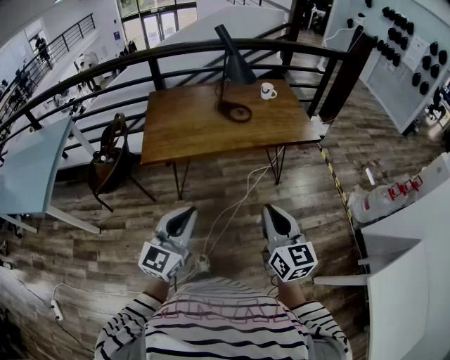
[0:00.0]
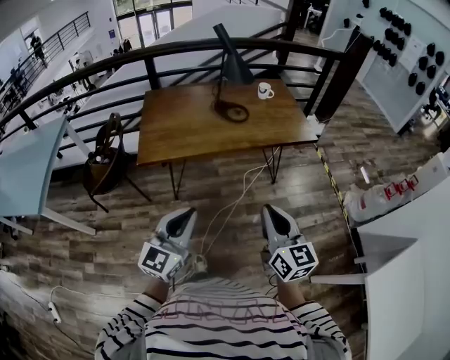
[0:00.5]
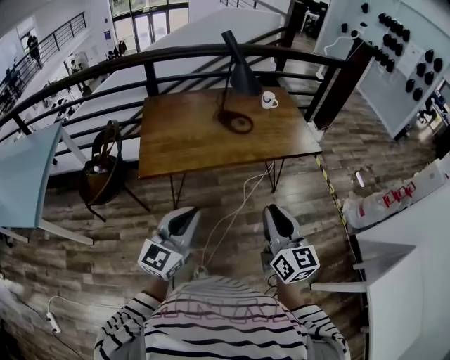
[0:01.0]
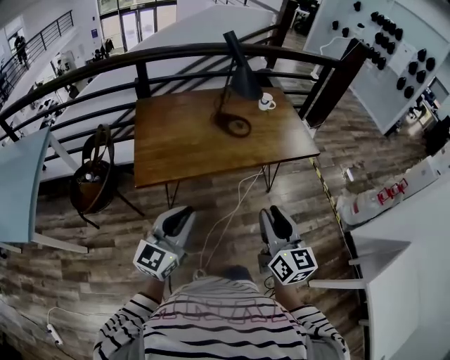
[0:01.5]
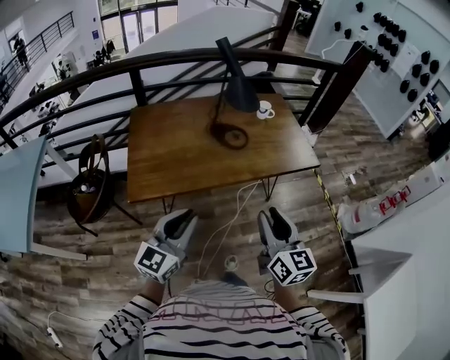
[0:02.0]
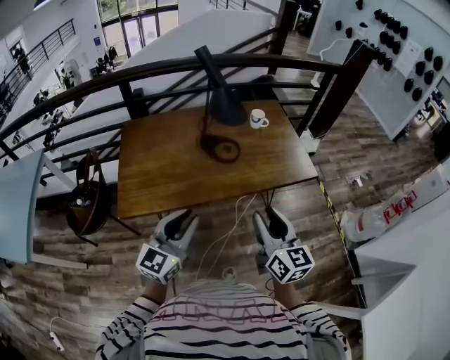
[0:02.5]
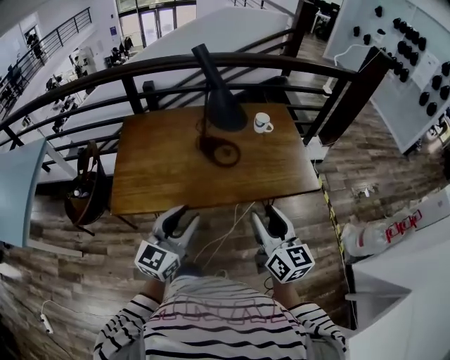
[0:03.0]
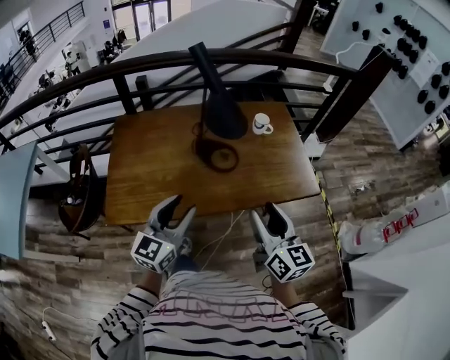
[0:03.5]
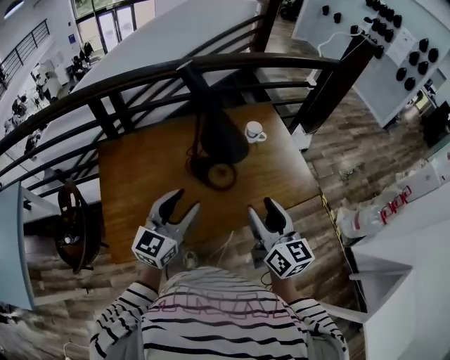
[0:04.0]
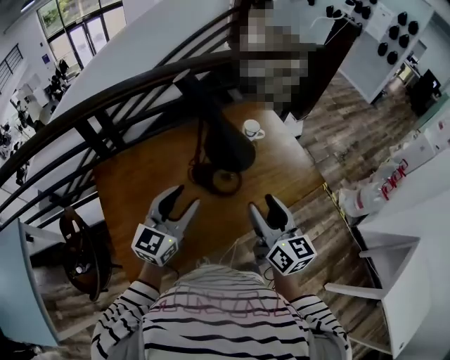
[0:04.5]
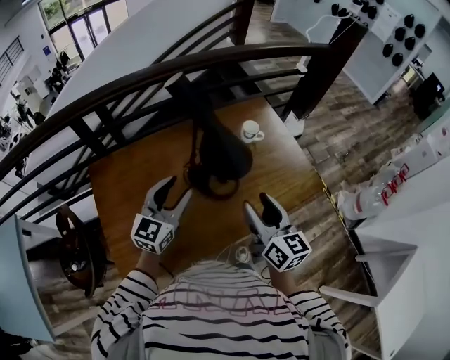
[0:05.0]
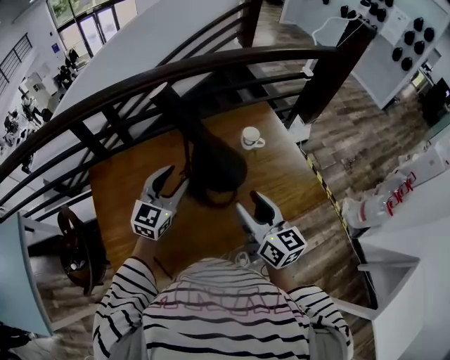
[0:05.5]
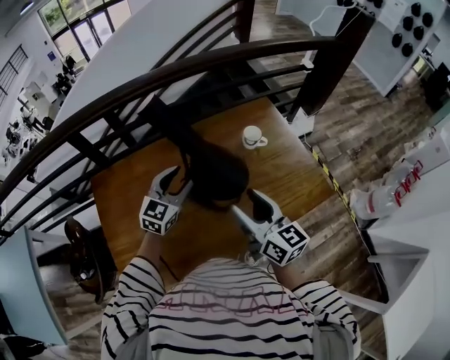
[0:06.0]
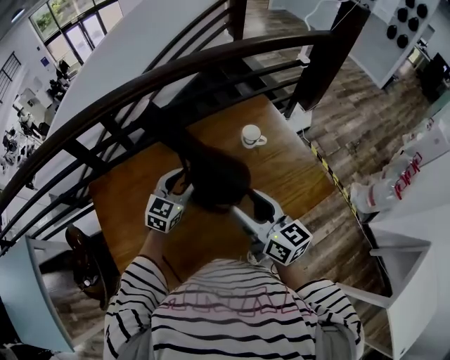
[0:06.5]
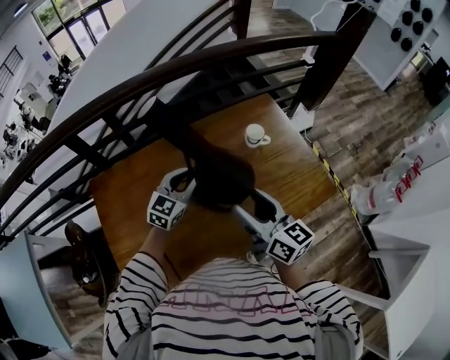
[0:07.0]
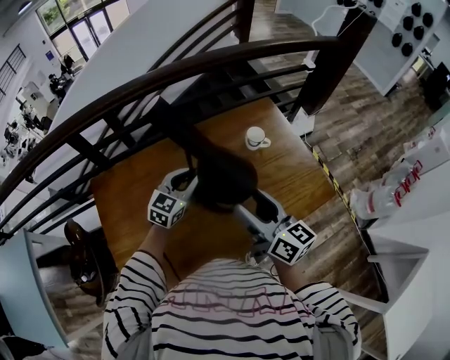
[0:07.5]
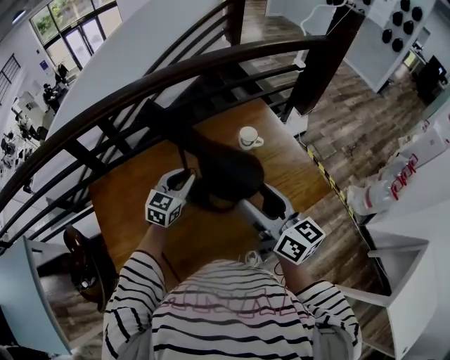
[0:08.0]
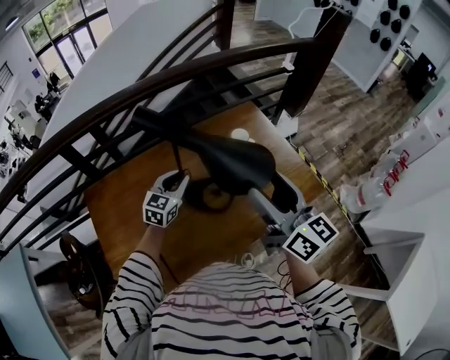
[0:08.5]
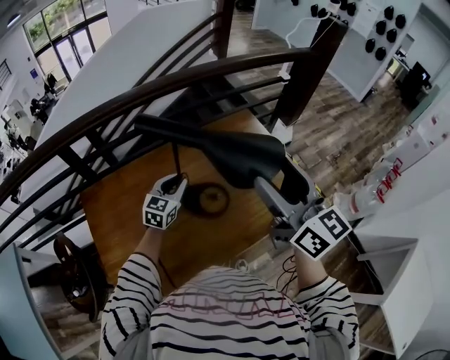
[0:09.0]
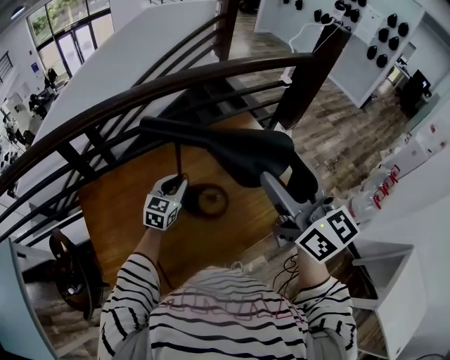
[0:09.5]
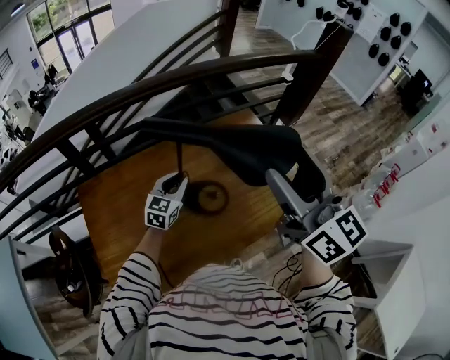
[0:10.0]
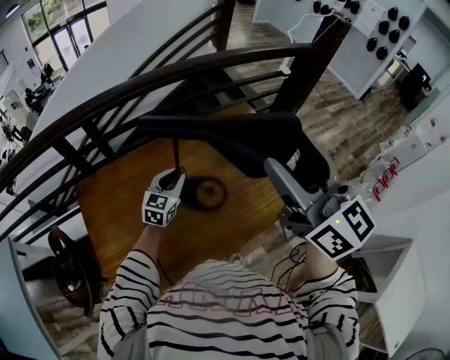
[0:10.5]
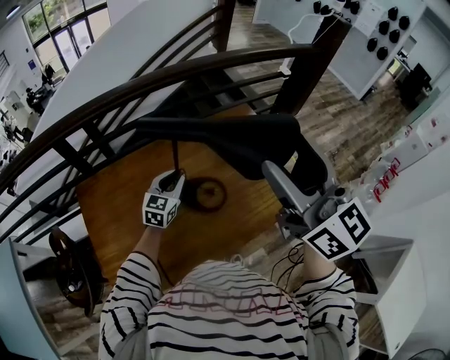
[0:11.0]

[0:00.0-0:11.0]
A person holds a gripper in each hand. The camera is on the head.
0.0 to 2.0 s: The two grippers go approximately 20 cm forward and to the left. The right gripper opens its fingers.
2.0 to 3.5 s: The grippers both shift forward by approximately 25 cm. The left gripper opens its fingers.
3.5 to 5.5 s: The right gripper moves forward and to the left, about 25 cm. Meanwhile the left gripper goes approximately 30 cm forward.
5.5 to 7.5 s: The left gripper goes about 10 cm downward and forward, and closes up.
7.5 to 9.0 s: The right gripper moves upward, roughly 15 cm, and rotates approximately 20 degrees.
9.0 to 11.0 s: The right gripper shifts roughly 5 cm upward.

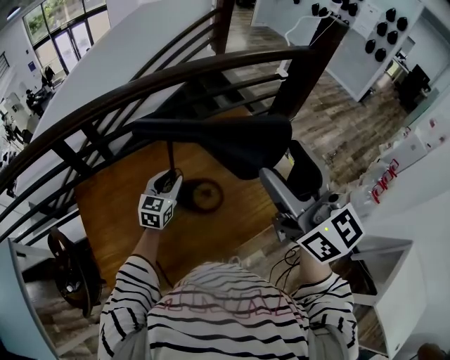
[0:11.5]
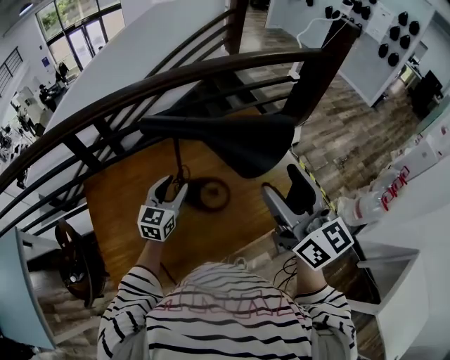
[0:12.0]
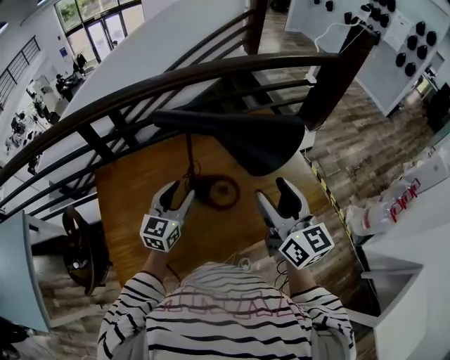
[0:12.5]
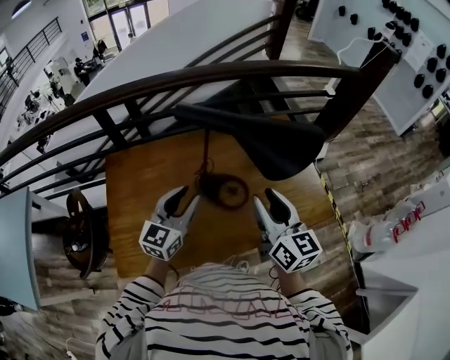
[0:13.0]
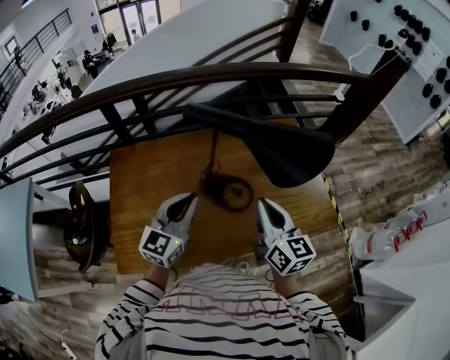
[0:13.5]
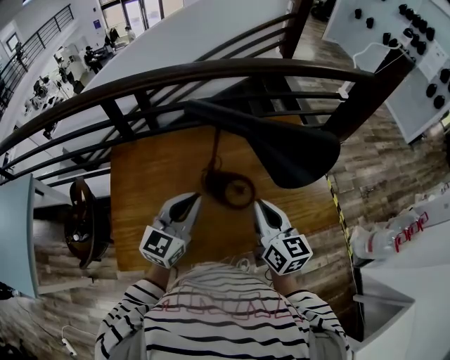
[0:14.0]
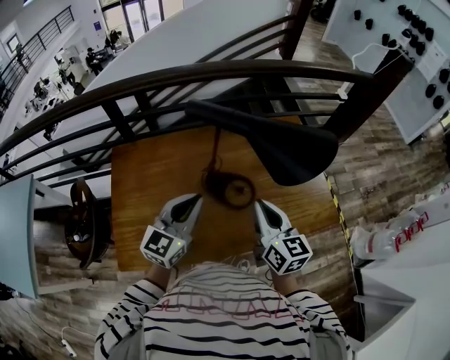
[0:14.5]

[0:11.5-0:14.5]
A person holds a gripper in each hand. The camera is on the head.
11.5 to 13.0 s: The left gripper moves backward and upward, approximately 15 cm; the right gripper is displaced downward by roughly 20 cm, and closes.
13.0 to 14.5 s: The right gripper heads downward, covering some 5 cm, and closes its fingers; the left gripper closes its fingers.

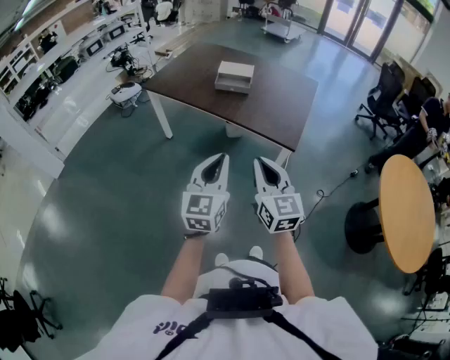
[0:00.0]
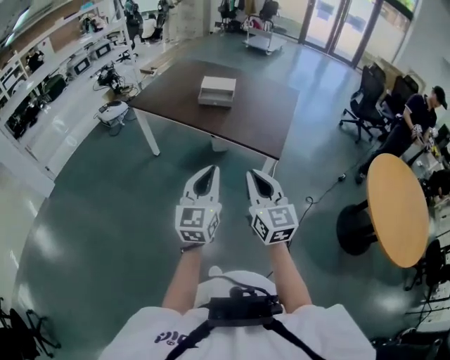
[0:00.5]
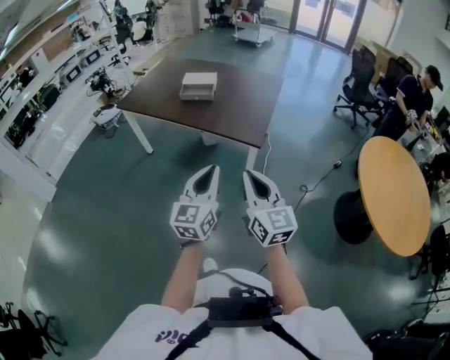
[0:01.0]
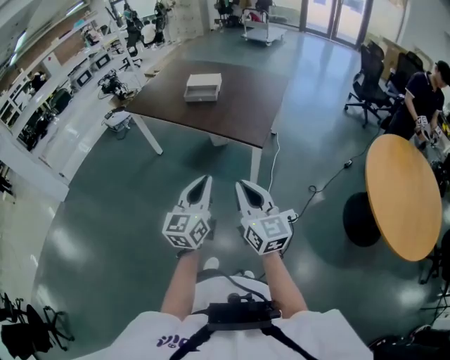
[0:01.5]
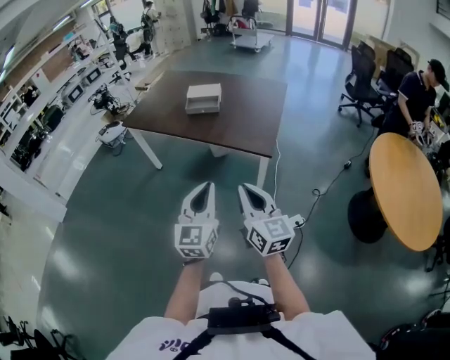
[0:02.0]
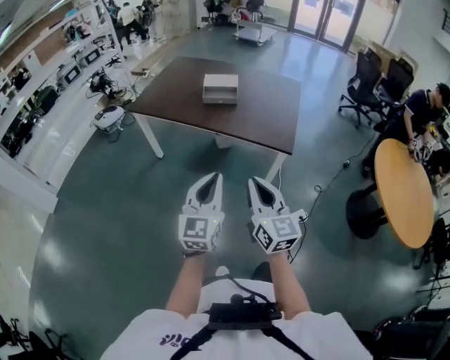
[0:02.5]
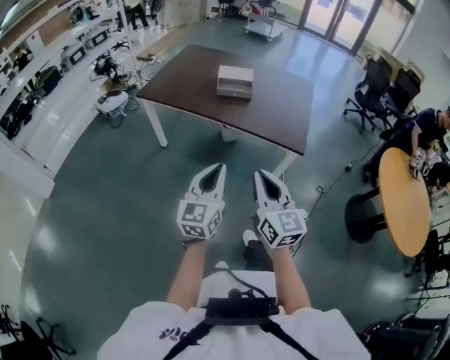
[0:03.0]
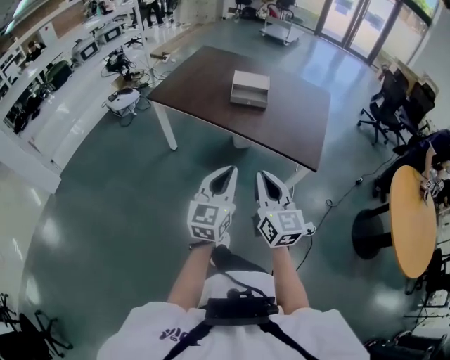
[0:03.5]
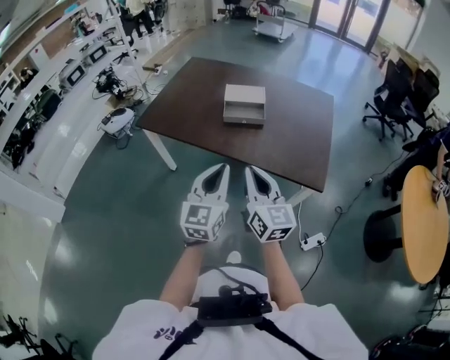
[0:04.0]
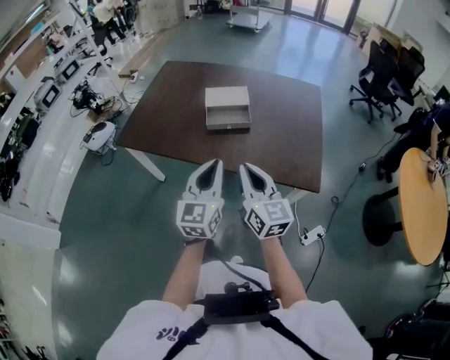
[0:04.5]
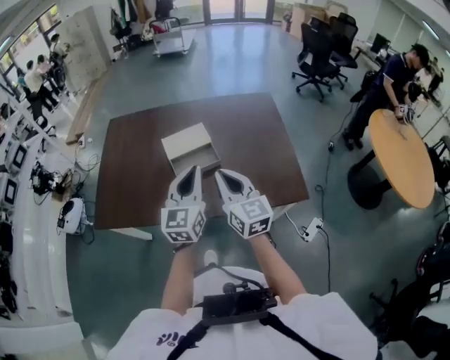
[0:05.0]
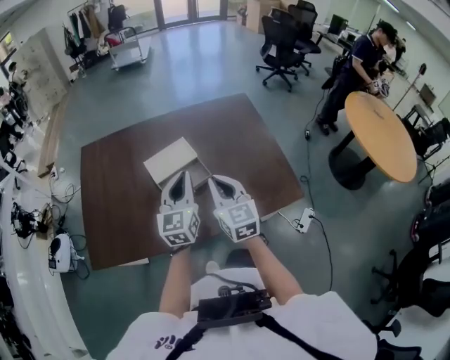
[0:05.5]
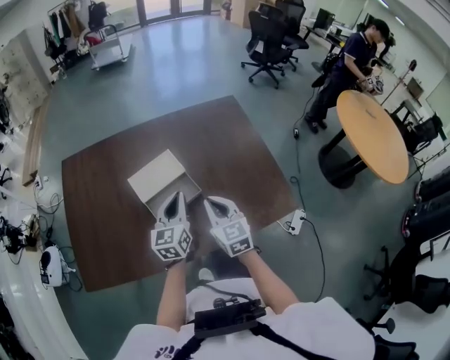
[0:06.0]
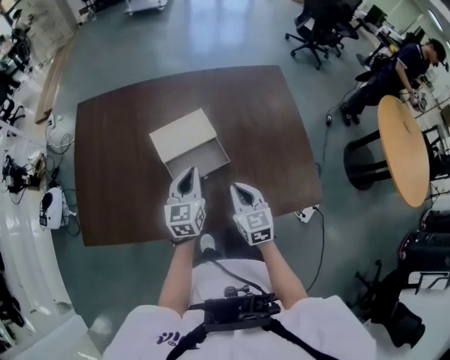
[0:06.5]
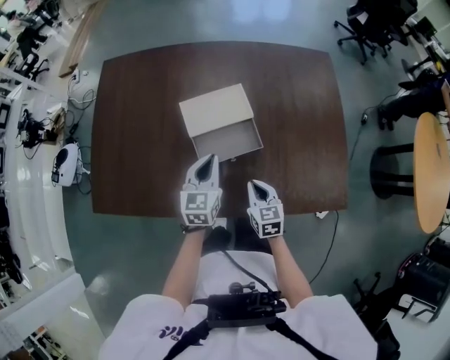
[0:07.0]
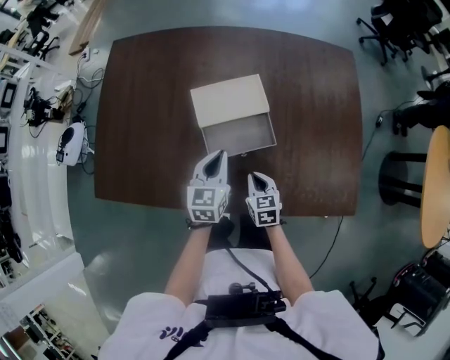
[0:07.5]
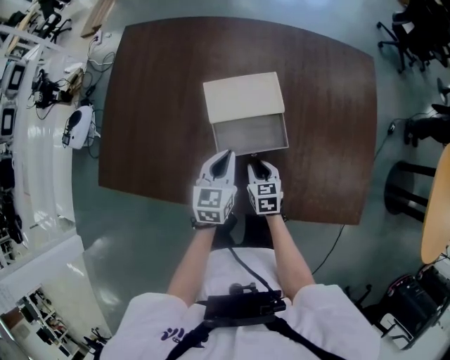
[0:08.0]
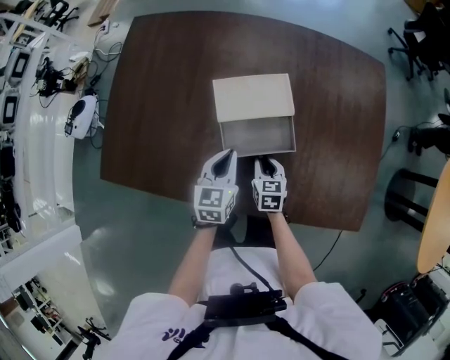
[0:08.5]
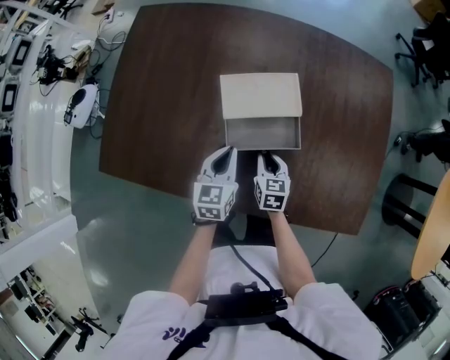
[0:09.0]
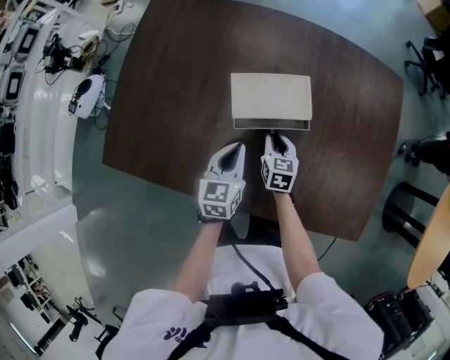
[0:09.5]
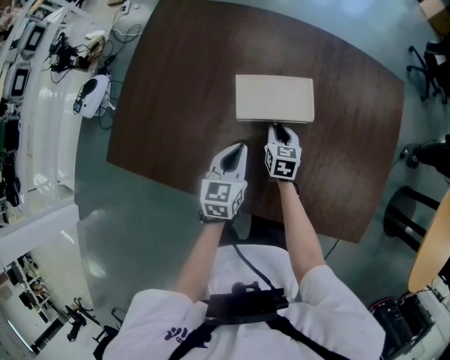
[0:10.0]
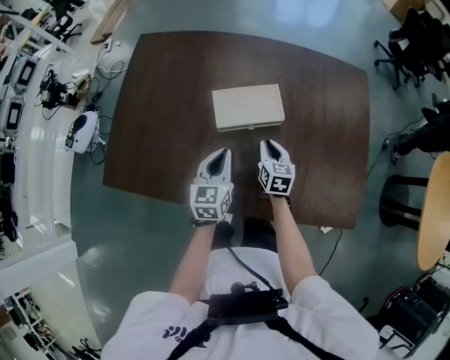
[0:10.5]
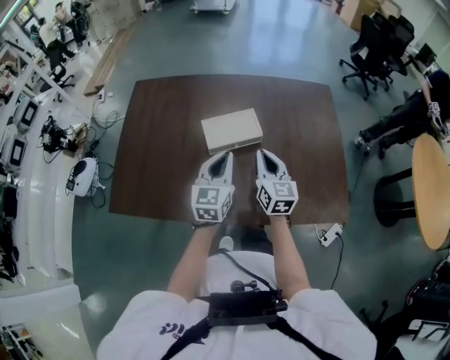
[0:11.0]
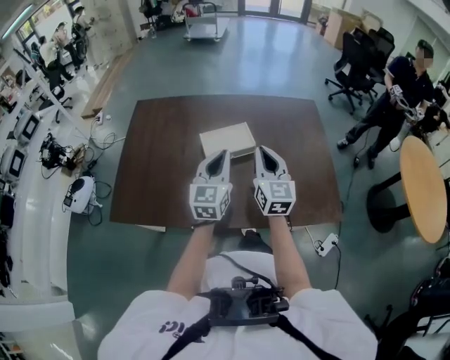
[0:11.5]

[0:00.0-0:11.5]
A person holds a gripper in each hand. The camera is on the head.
0.0 to 2.0 s: The right gripper goes about 10 cm to the right and backward; the left gripper shifts approximately 10 cm to the right.
2.0 to 4.0 s: Both grippers move forward and to the left, approximately 40 cm.
4.0 to 6.0 s: The left gripper moves about 50 cm, and turns by about 30 degrees; the right gripper shifts by approximately 40 cm, and rotates about 40 degrees.
6.0 to 7.5 s: The right gripper is displaced downward by roughly 25 cm, and turns by approximately 30 degrees. The left gripper travels downward and to the left by some 15 cm, and rotates some 20 degrees.
7.5 to 9.5 s: The left gripper changes place by roughly 5 cm. The right gripper goes approximately 15 cm forward.
9.5 to 11.5 s: The grippers both shift upward by approximately 30 cm. The right gripper tips its fingers upward by approximately 40 degrees; the left gripper changes its angle by some 30 degrees.

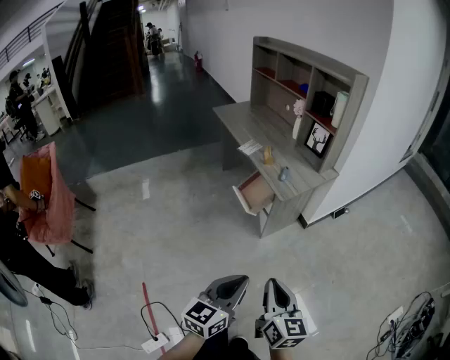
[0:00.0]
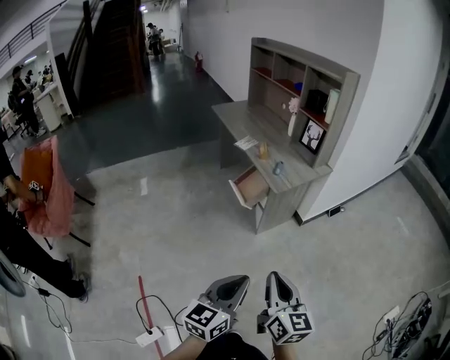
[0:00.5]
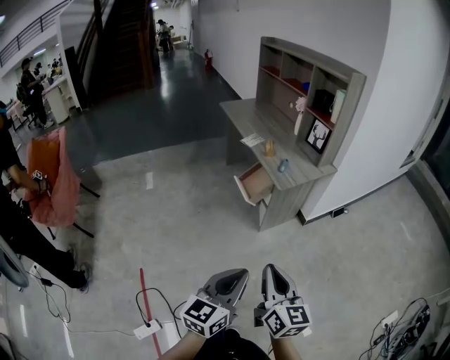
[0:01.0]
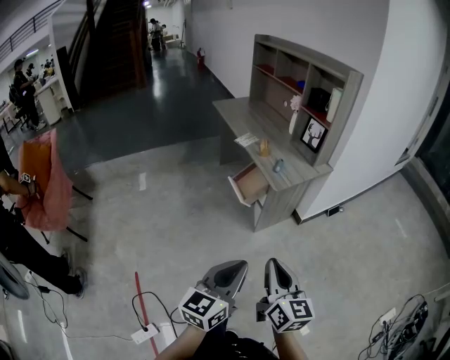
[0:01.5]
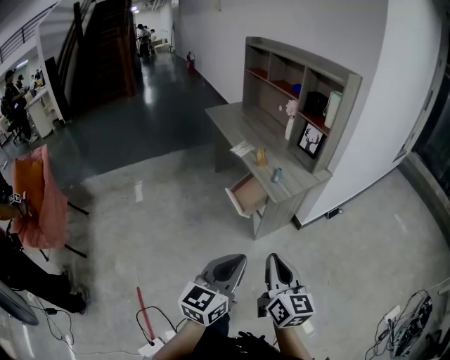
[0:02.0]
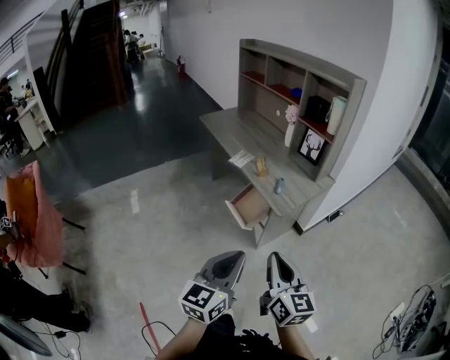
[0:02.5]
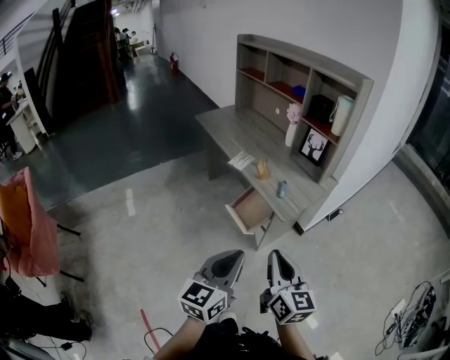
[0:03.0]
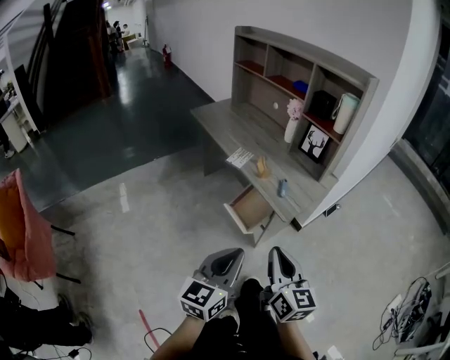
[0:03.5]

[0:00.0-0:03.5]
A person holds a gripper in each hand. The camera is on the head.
0.0 to 2.0 s: Both grippers travel together forward, about 5 cm.
2.0 to 3.5 s: Both grippers move forward and to the left, about 20 cm.
